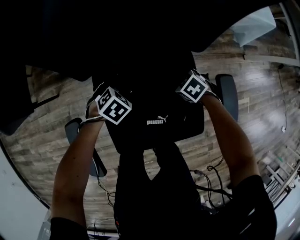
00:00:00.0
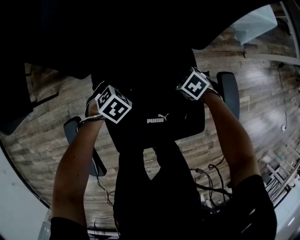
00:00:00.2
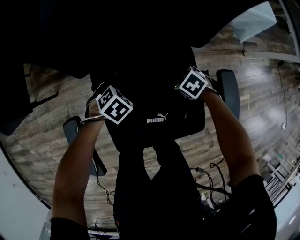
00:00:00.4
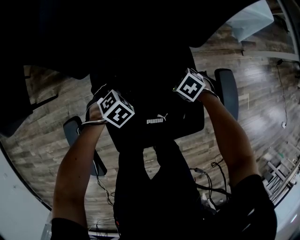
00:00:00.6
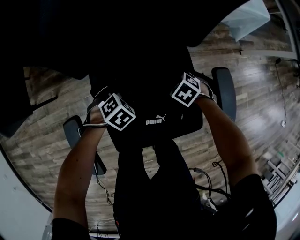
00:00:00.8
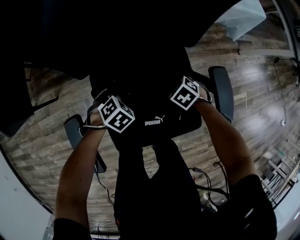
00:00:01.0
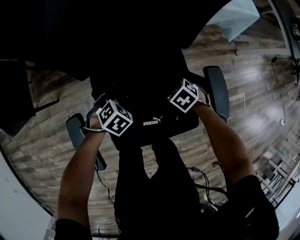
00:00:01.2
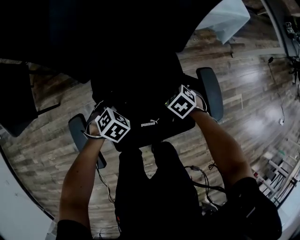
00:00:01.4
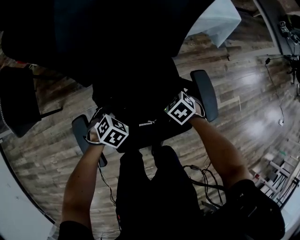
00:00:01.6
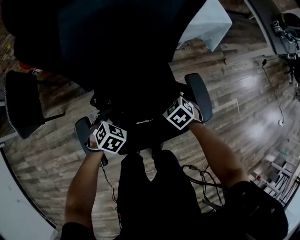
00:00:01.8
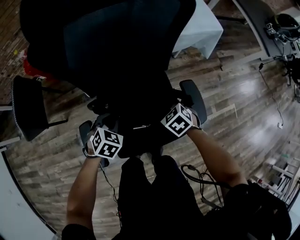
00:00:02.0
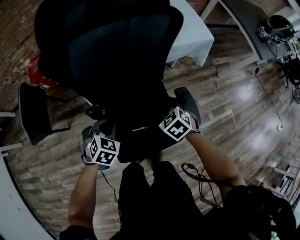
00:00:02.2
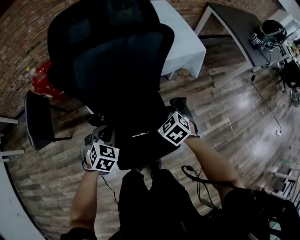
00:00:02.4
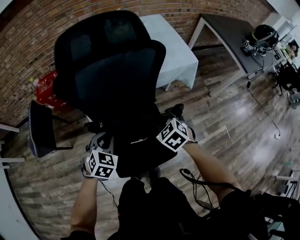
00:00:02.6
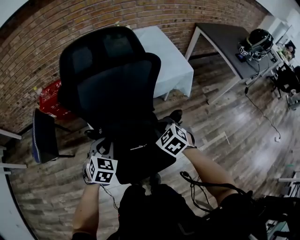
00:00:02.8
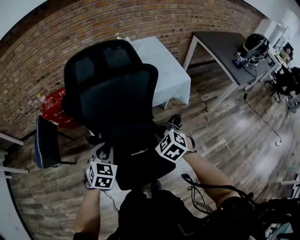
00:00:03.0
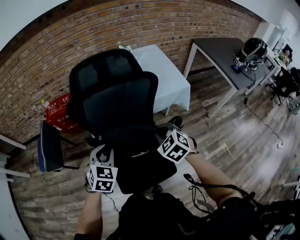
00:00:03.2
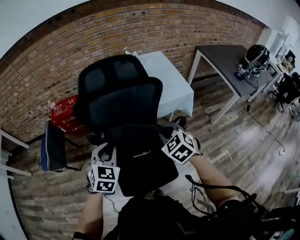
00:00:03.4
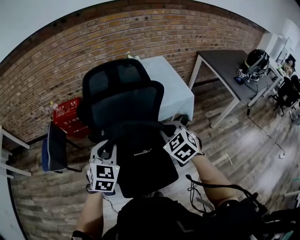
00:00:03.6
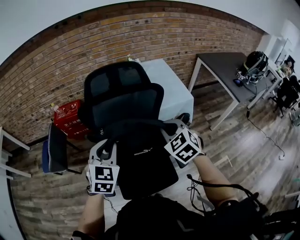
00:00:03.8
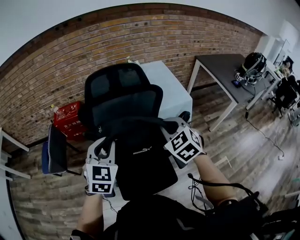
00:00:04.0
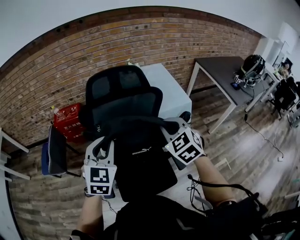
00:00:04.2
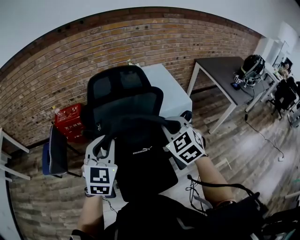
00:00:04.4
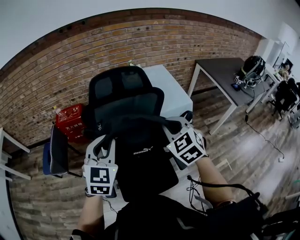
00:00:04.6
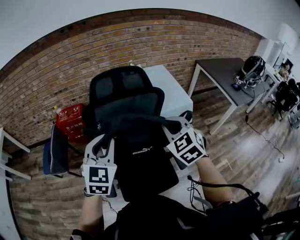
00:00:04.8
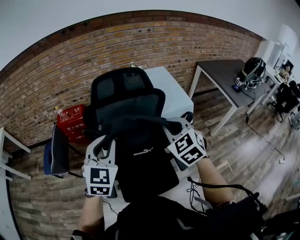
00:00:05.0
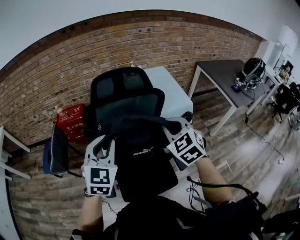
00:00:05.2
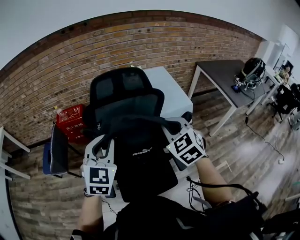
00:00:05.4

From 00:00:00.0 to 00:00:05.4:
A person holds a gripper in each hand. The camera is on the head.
From 00:00:00.0 to 00:00:01.4: Both grippers move upward, some 5 cm. The left gripper closes its fingers. The right gripper closes up.
From 00:00:01.4 to 00:00:02.8: The grippers both shift upward by some 30 cm. The left gripper changes its angle by roughly 30 degrees; the right gripper turns by some 30 degrees.
From 00:00:02.8 to 00:00:04.0: The two grippers go roughly 20 cm upward. The left gripper turns by approximately 20 degrees, while the right gripper turns by approximately 20 degrees.
From 00:00:04.0 to 00:00:05.4: The left gripper ends up some 5 cm from where it was.

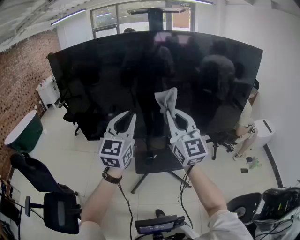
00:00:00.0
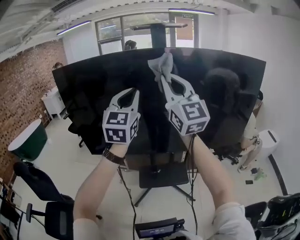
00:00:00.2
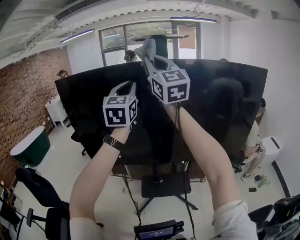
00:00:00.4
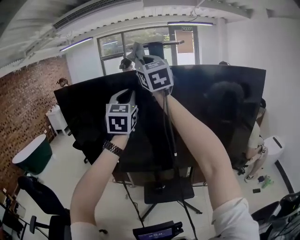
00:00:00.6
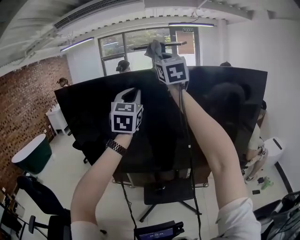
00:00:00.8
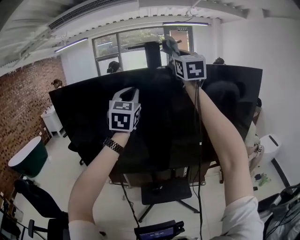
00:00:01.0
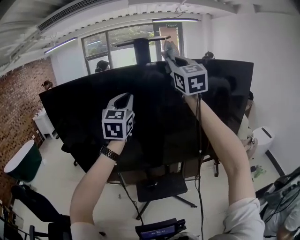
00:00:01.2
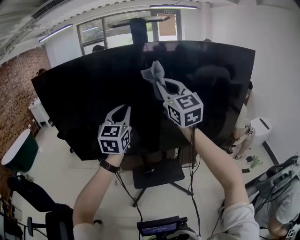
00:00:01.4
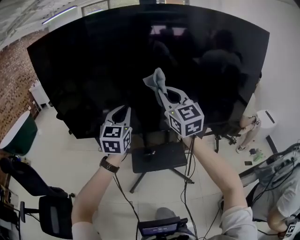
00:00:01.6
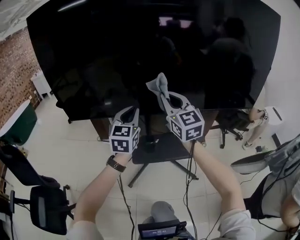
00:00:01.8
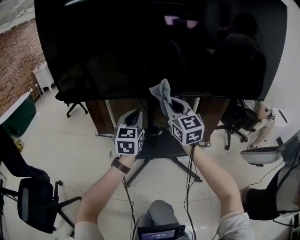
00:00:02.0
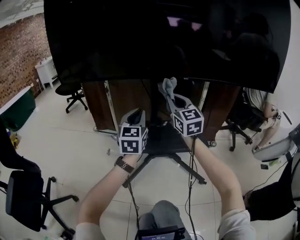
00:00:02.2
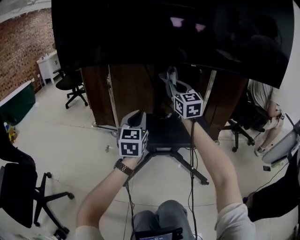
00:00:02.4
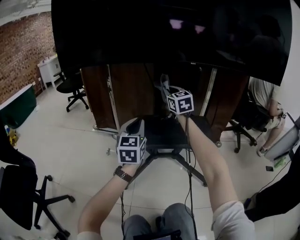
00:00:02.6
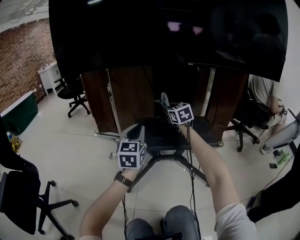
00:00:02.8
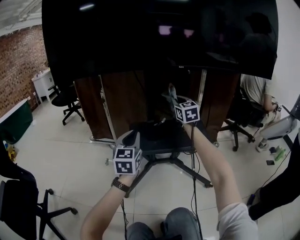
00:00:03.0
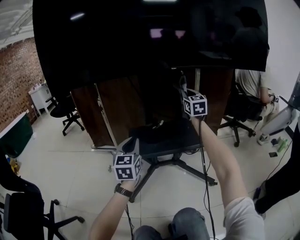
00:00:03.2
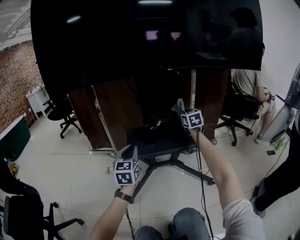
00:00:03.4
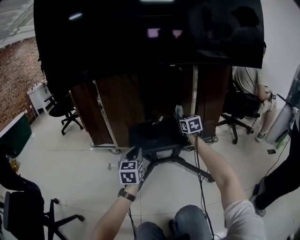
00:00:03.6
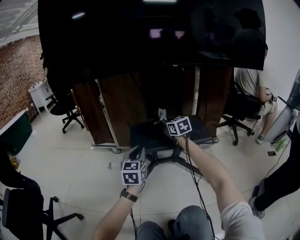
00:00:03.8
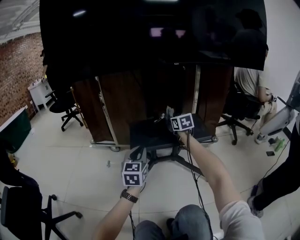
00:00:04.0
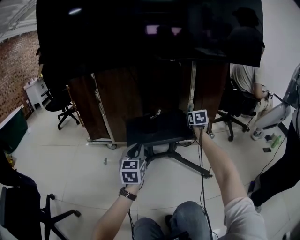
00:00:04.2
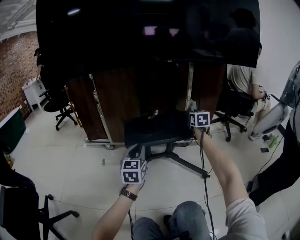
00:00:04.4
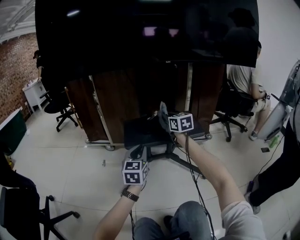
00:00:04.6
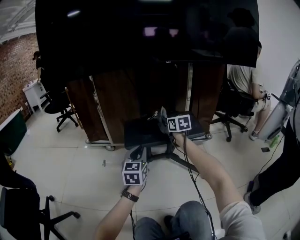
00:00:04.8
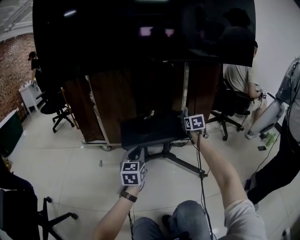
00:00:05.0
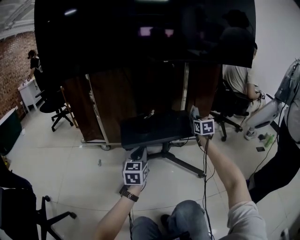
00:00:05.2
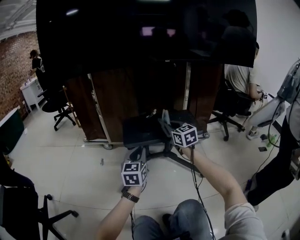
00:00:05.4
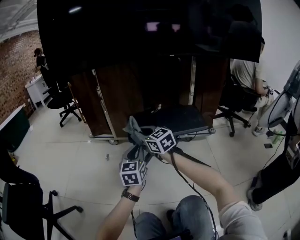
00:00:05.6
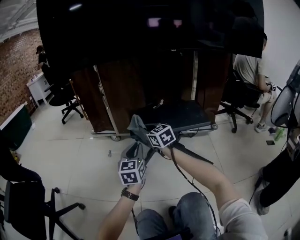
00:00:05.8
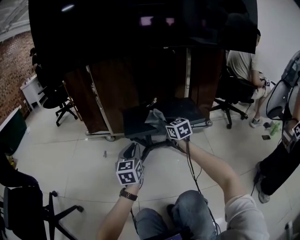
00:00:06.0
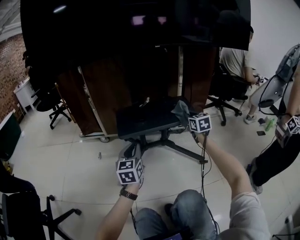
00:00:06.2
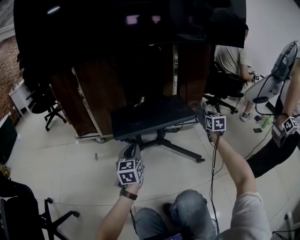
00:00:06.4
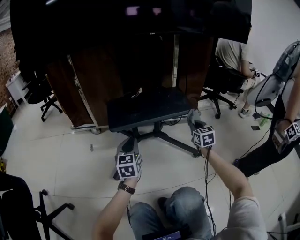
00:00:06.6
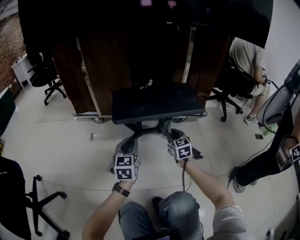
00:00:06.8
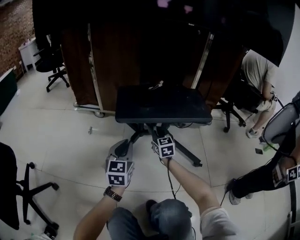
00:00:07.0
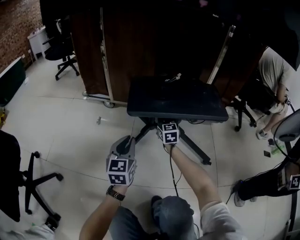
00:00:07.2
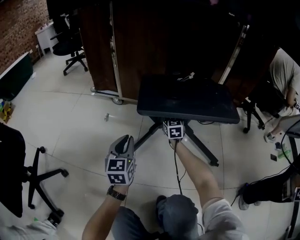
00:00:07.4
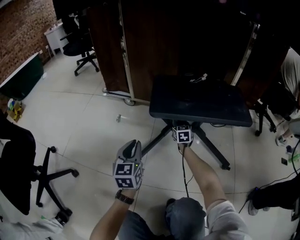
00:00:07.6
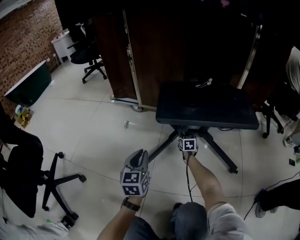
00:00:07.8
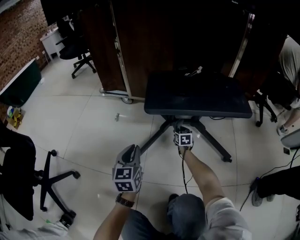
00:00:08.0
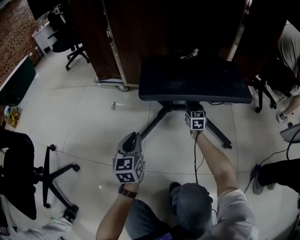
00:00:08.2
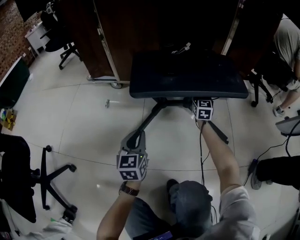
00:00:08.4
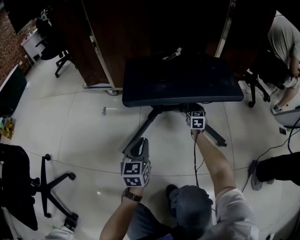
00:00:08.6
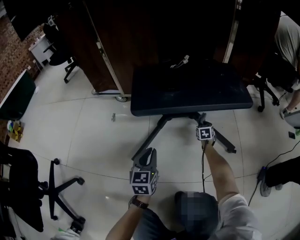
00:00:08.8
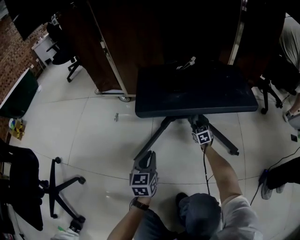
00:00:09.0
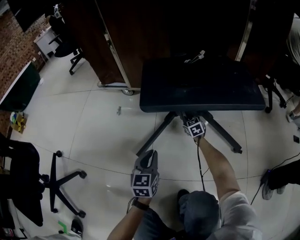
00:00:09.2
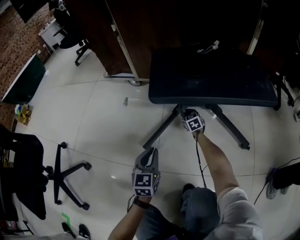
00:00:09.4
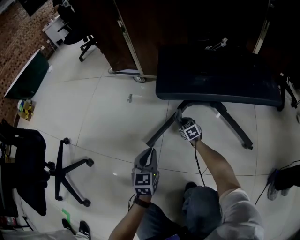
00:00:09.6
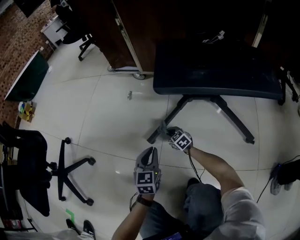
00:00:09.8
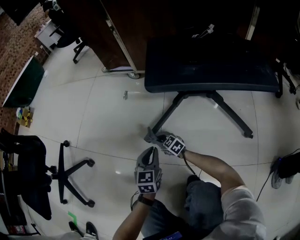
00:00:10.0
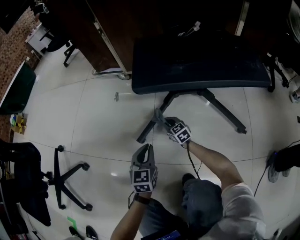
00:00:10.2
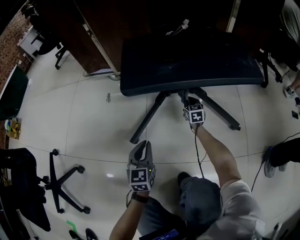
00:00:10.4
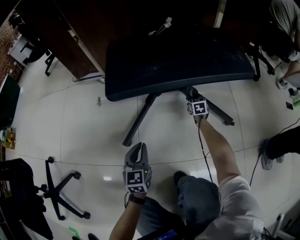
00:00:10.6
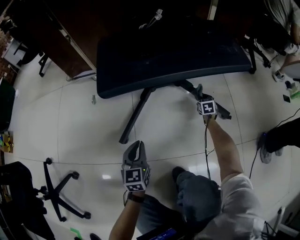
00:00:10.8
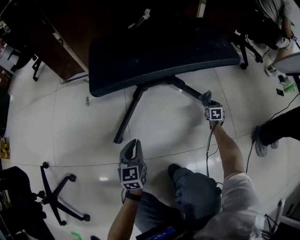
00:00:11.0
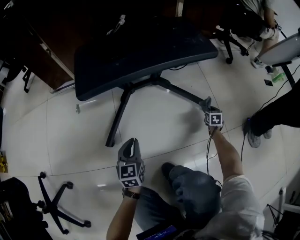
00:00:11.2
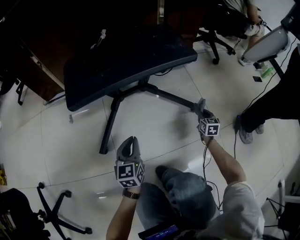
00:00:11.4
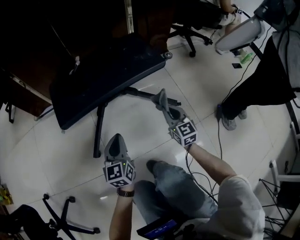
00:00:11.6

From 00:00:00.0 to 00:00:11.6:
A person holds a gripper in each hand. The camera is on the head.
From 00:00:00.0 to 00:00:01.4: The two grippers go some 10 cm forward. The right gripper travels upward and back again, roughly 30 cm each way. The left gripper reaches some 20 cm upward, then returns.
From 00:00:01.4 to 00:00:02.8: Both grippers move downward, roughly 90 cm. The right gripper angles its fingers downward, by some 30 degrees.
From 00:00:02.8 to 00:00:04.4: The right gripper goes left and right, about 25 cm each way, reversing 2 times, and rotates approximately 30 degrees, while the left gripper travels downward and backward by some 10 cm.
From 00:00:04.4 to 00:00:05.8: The left gripper shifts by approximately 5 cm; the right gripper goes up and down, approximately 5 cm each way, reversing 2 times, and changes its angle by approximately 40 degrees.
From 00:00:05.8 to 00:00:07.2: The left gripper goes approximately 15 cm downward. The right gripper moves downward, approximately 20 cm, and rotates about 20 degrees.
From 00:00:07.2 to 00:00:08.8: The right gripper swings up and down, about 25 cm each way, with 2 reversals, and turns by roughly 30 degrees, while the left gripper is displaced downward by about 10 cm.
From 00:00:08.8 to 00:00:10.2: The left gripper heads downward, covering some 10 cm. Meanwhile the right gripper travels downward and back again, roughly 5 cm each way, and rotates about 50 degrees.
From 00:00:10.2 to 00:00:11.6: The left gripper moves about 25 cm, and swivels approximately 20 degrees. Meanwhile the right gripper shifts by approximately 50 cm, and turns by some 40 degrees.

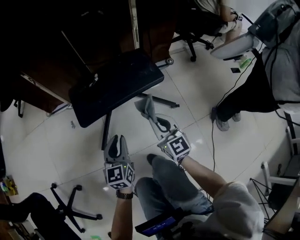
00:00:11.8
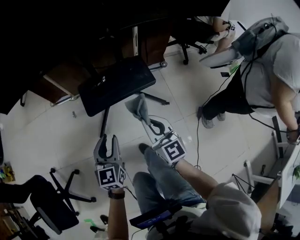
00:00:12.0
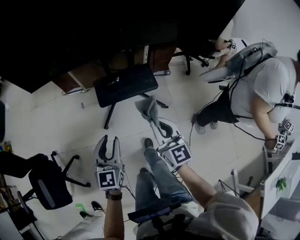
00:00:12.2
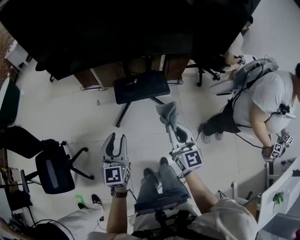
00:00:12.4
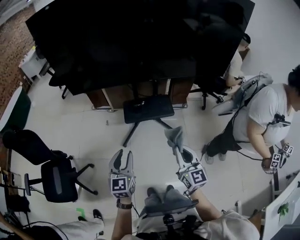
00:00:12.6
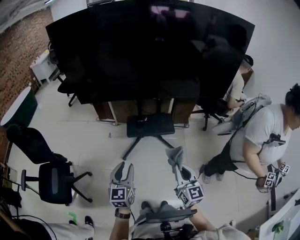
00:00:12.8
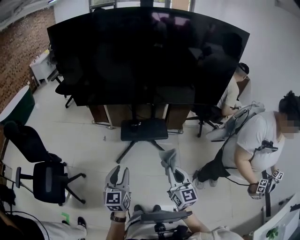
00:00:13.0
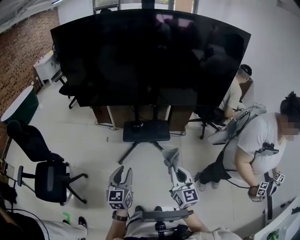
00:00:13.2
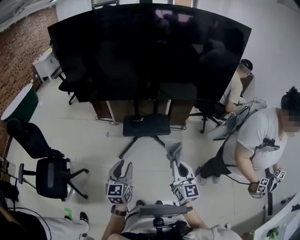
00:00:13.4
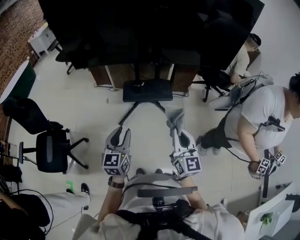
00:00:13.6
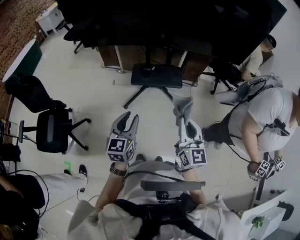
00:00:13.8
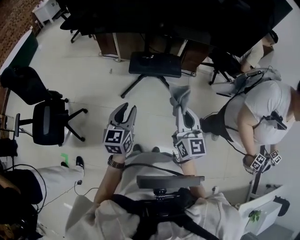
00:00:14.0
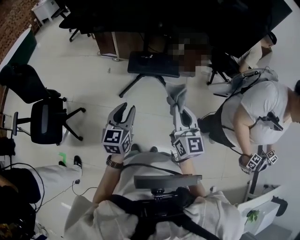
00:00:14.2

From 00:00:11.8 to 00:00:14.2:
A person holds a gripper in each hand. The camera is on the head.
From 00:00:11.8 to 00:00:13.0: Both grippers travel together upward and backward, about 70 cm.
From 00:00:13.0 to 00:00:14.2: The left gripper shifts some 5 cm downward.

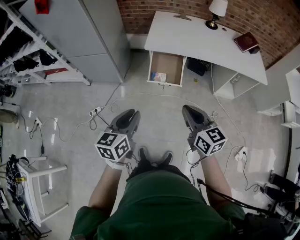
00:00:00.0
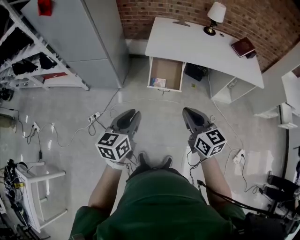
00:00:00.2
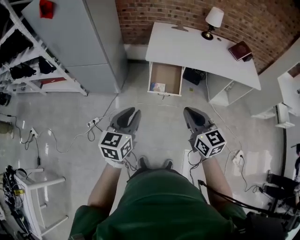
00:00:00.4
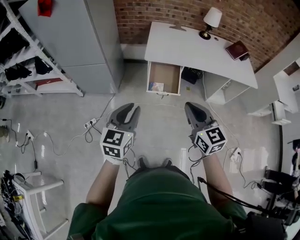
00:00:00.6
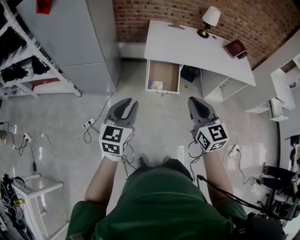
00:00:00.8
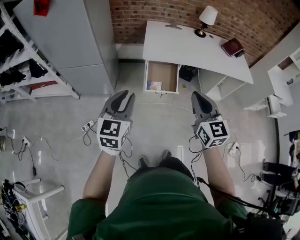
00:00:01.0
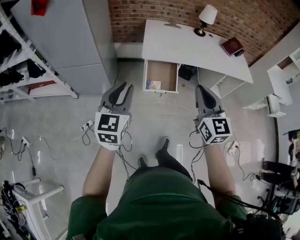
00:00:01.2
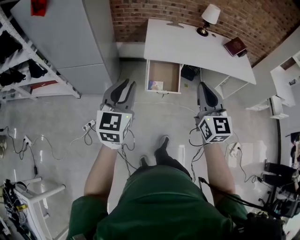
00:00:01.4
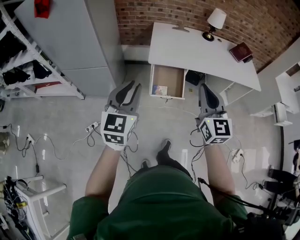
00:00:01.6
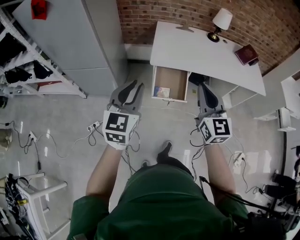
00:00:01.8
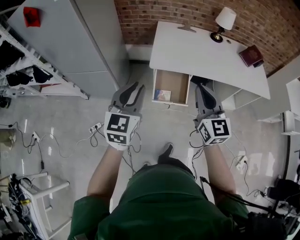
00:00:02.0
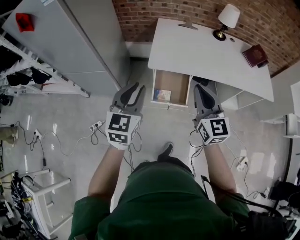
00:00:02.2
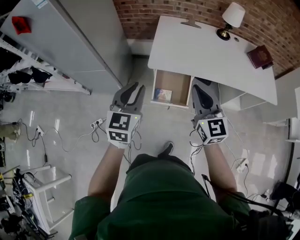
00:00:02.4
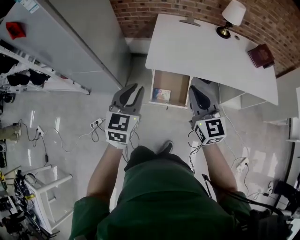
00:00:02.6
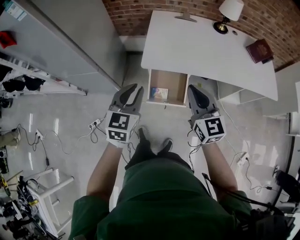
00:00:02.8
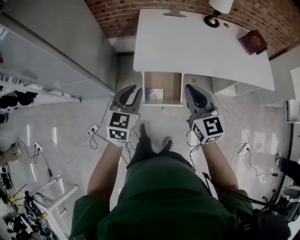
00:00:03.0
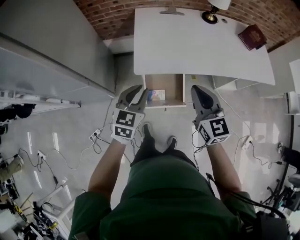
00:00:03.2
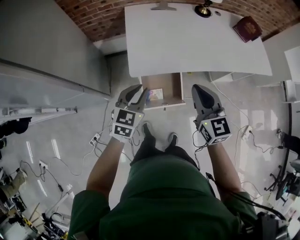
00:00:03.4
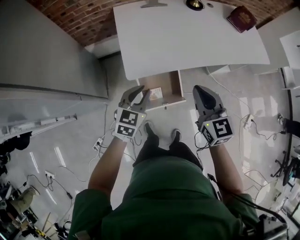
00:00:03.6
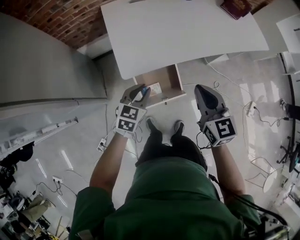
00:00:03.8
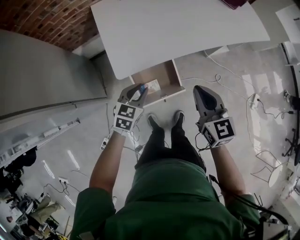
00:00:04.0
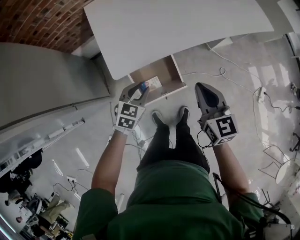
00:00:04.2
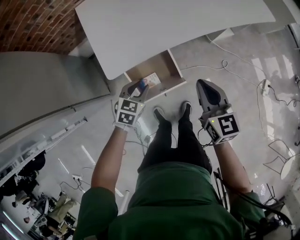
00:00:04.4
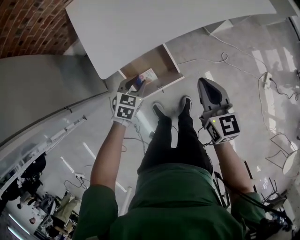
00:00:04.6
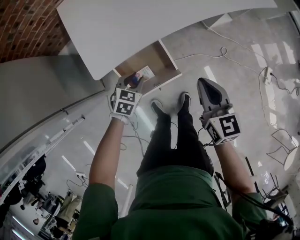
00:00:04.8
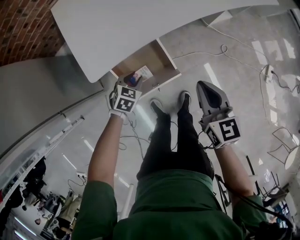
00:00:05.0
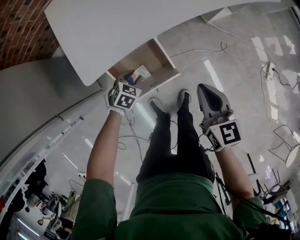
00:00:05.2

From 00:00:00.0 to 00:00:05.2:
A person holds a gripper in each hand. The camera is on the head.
From 00:00:00.0 to 00:00:01.8: The grippers both shift forward, upward and to the left by about 20 cm. The right gripper changes its angle by about 30 degrees. Meanwhile the left gripper turns by some 30 degrees.
From 00:00:01.8 to 00:00:03.4: The grippers both shift forward and downward by about 30 cm. The left gripper swivels about 30 degrees.
From 00:00:03.4 to 00:00:05.2: The left gripper moves downward, some 35 cm, and tilts its fingers some 40 degrees downward. The right gripper moves downward and to the right, some 25 cm, and swivels about 30 degrees.
